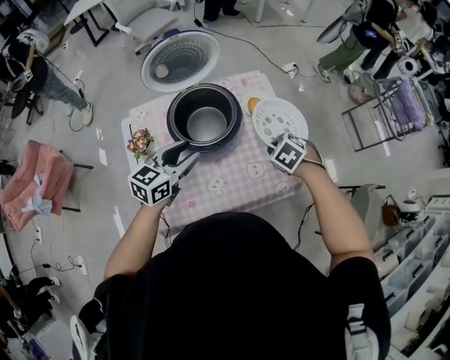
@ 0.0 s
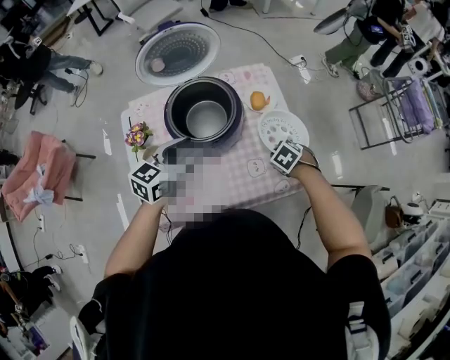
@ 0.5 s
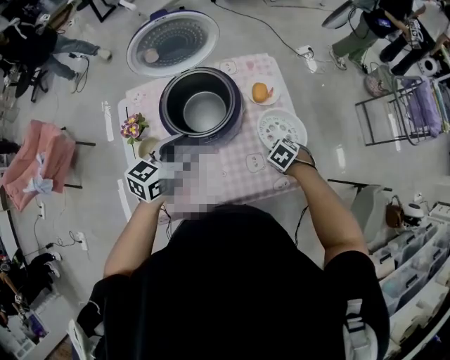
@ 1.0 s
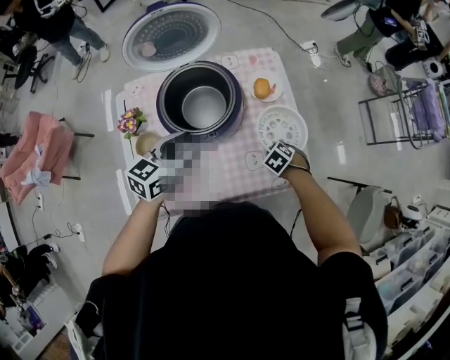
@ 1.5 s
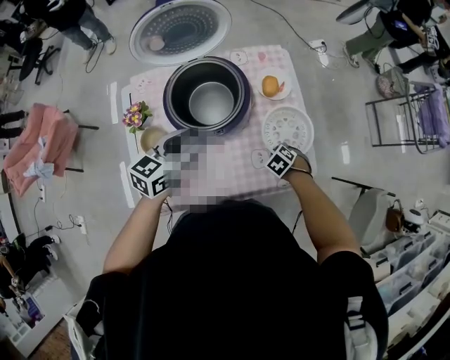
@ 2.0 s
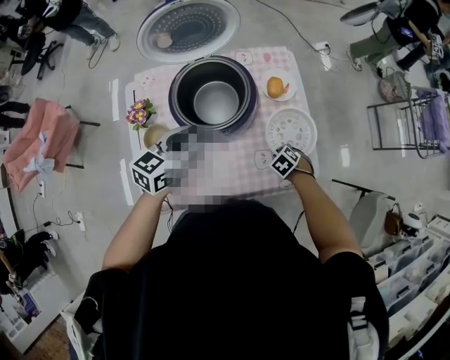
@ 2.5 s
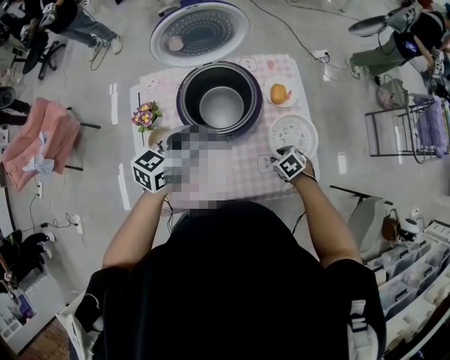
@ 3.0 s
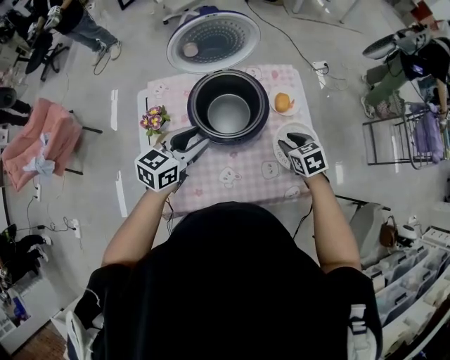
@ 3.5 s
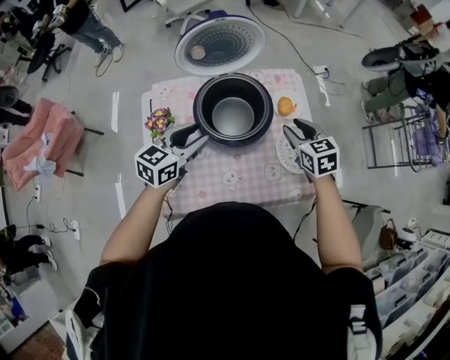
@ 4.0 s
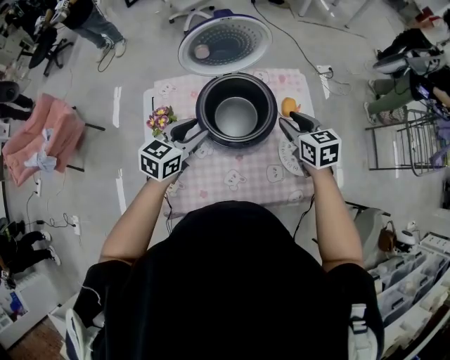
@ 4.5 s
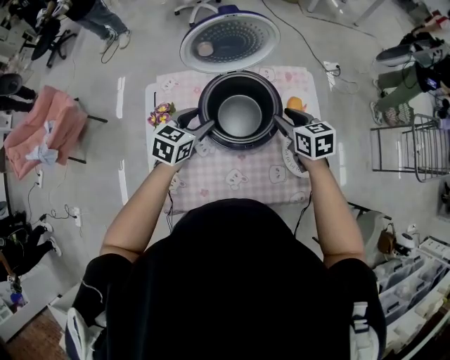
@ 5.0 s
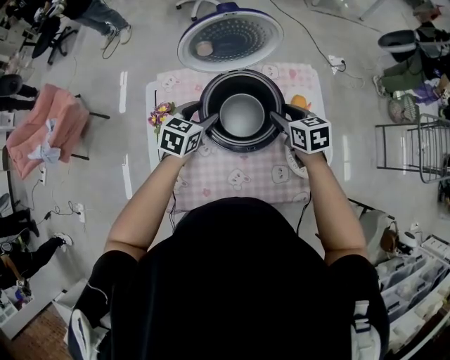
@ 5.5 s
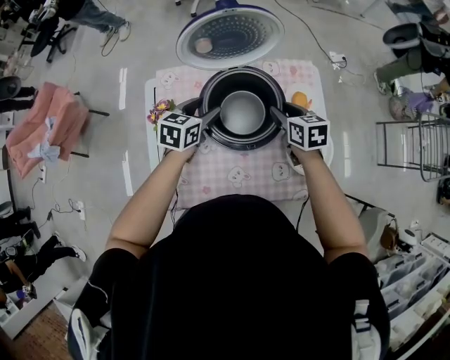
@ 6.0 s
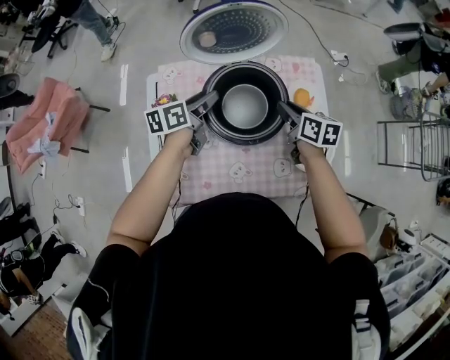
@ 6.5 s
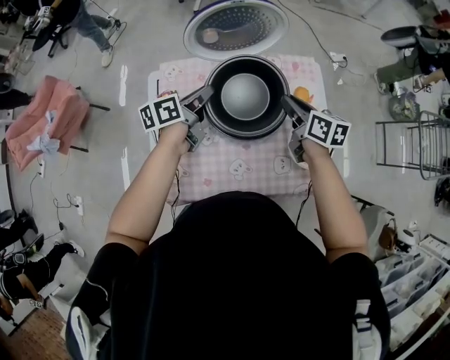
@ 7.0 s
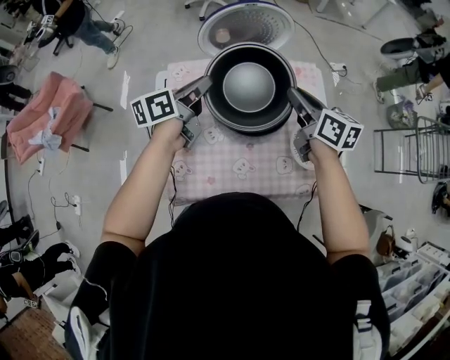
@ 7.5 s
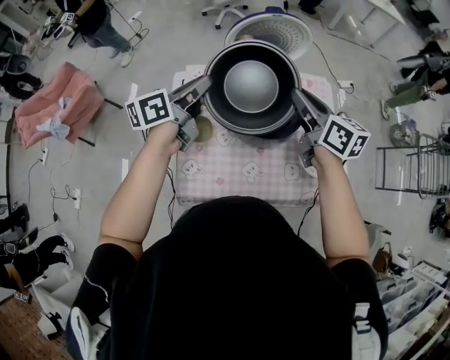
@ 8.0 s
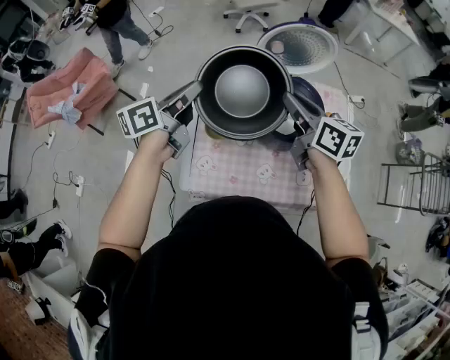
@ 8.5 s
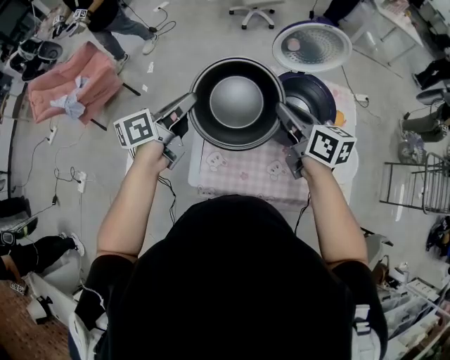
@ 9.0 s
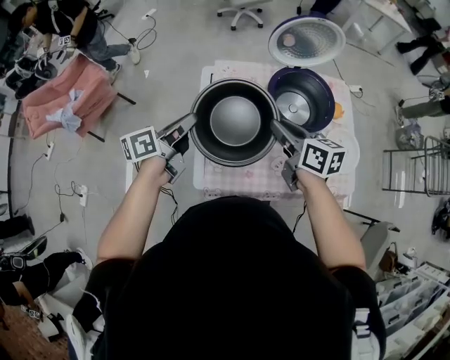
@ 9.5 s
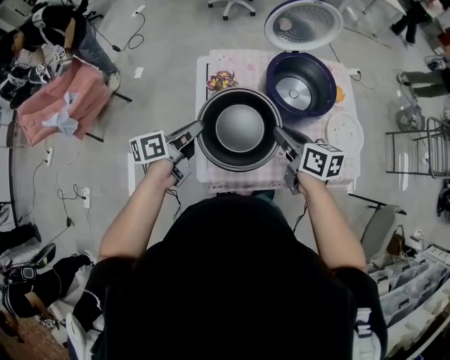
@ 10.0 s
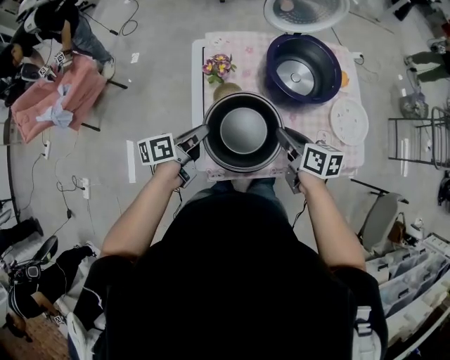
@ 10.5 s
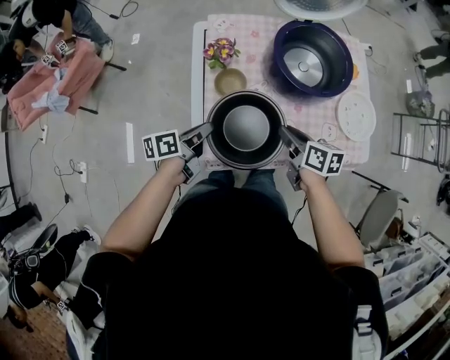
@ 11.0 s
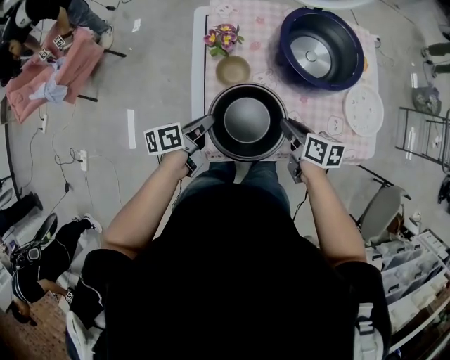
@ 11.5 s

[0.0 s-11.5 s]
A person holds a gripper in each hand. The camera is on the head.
0.0 to 2.0 s: The right gripper shifts about 20 cm downward. The left gripper is displaced downward by about 5 cm.
2.0 to 4.0 s: The right gripper moves upward, approximately 25 cm, tilts its fingers roughly 40 degrees upward, and opens its fingers, while the left gripper shifts by approximately 10 cm.
4.0 to 6.0 s: The right gripper goes some 10 cm forward, to the left and downward; the left gripper moves forward and downward, approximately 15 cm, and changes its angle by approximately 20 degrees.
6.0 to 7.5 s: The two grippers go about 15 cm upward. The right gripper rotates roughly 30 degrees, while the left gripper swivels approximately 40 degrees, and closes up.
7.5 to 9.5 s: The grippers both shift to the left and backward by about 30 cm.
9.5 to 11.5 s: Both grippers move downward, approximately 20 cm. The left gripper rotates roughly 20 degrees; the right gripper rotates roughly 20 degrees.

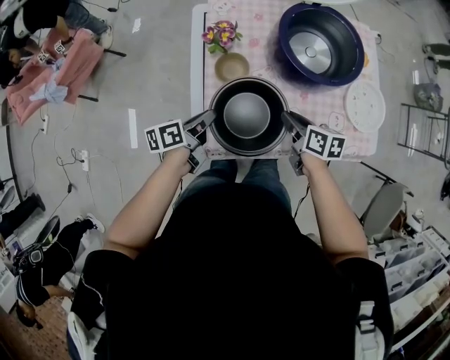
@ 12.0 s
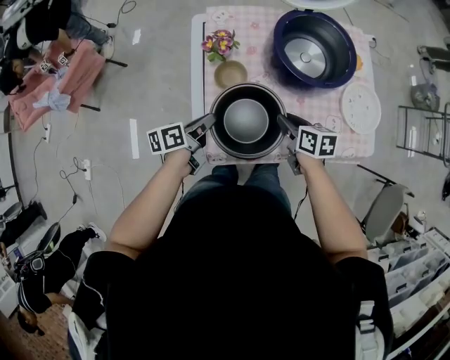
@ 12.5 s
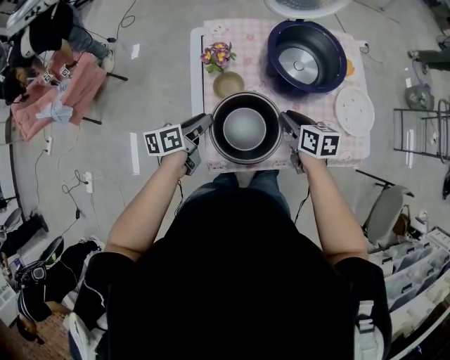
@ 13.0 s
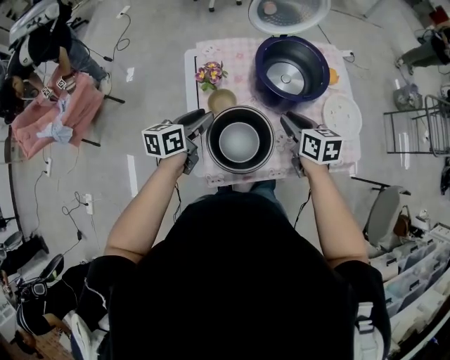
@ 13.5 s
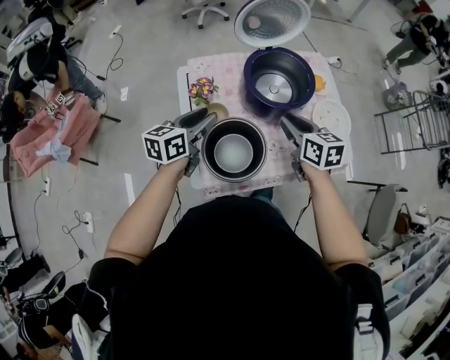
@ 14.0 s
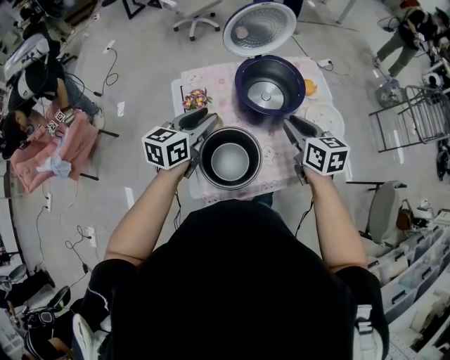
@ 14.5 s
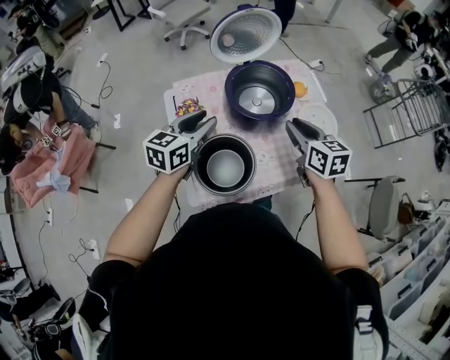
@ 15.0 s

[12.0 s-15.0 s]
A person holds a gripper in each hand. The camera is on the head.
12.0 to 13.5 s: The right gripper heads upward, covering about 10 cm, and swivels some 20 degrees; the left gripper is displaced upward and forward by about 15 cm, swivels roughly 30 degrees, and opens its fingers.
13.5 to 15.0 s: Both grippers travel together upward and to the right, about 15 cm. The left gripper changes its angle by roughly 30 degrees.

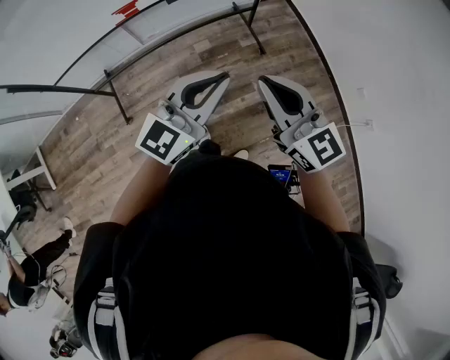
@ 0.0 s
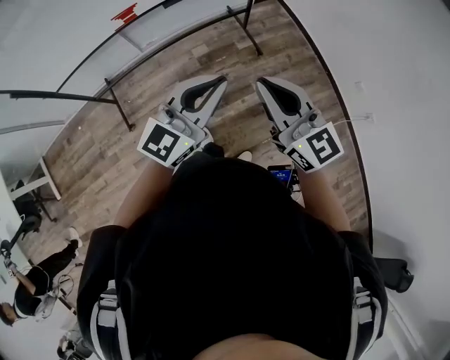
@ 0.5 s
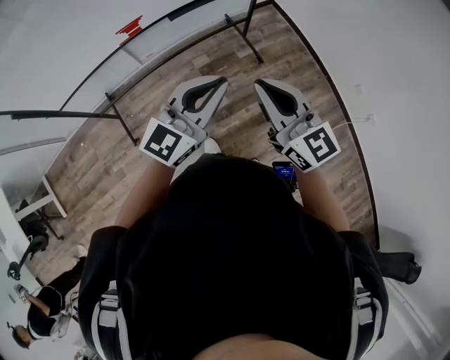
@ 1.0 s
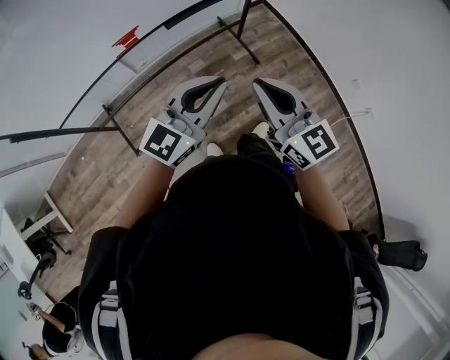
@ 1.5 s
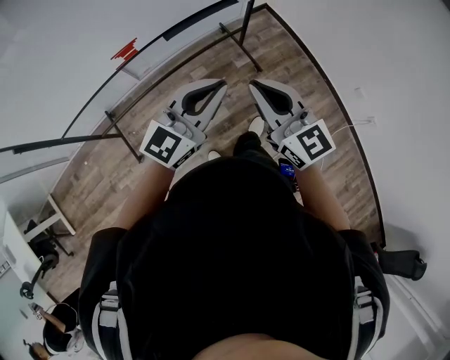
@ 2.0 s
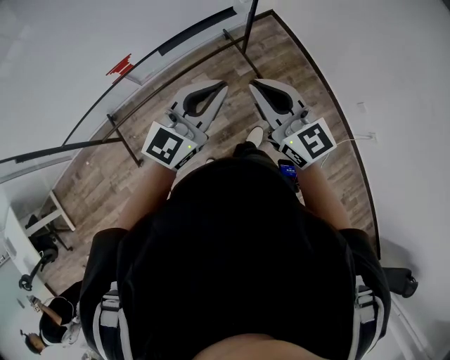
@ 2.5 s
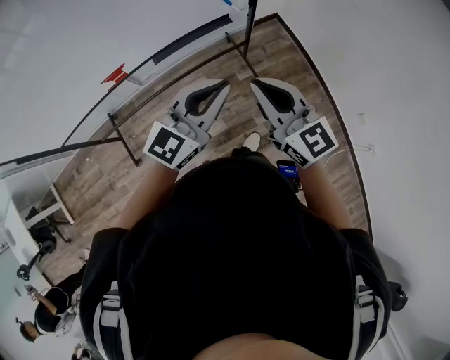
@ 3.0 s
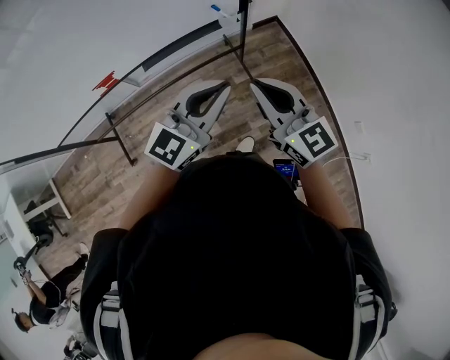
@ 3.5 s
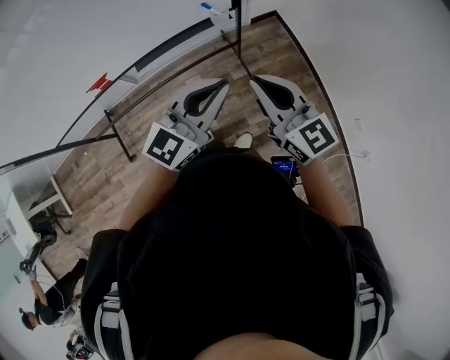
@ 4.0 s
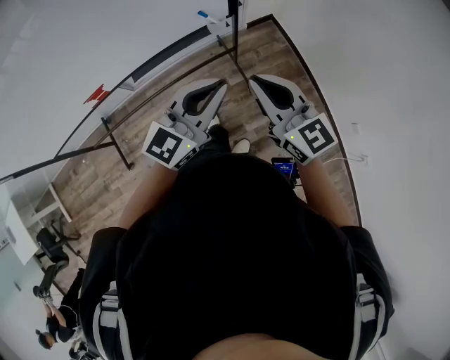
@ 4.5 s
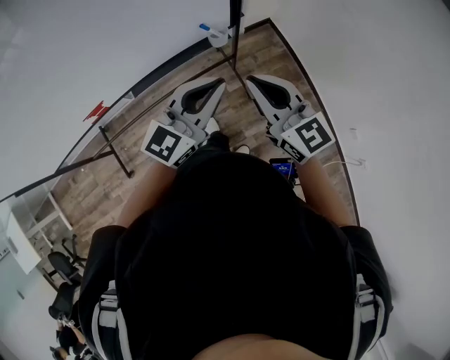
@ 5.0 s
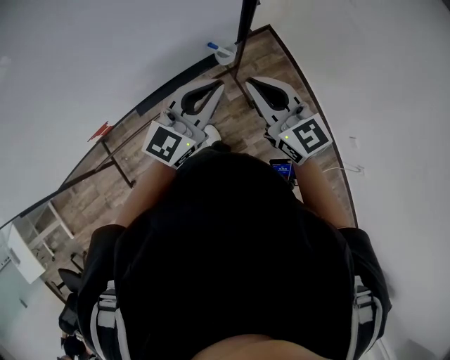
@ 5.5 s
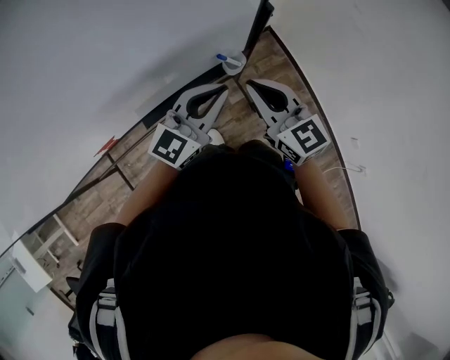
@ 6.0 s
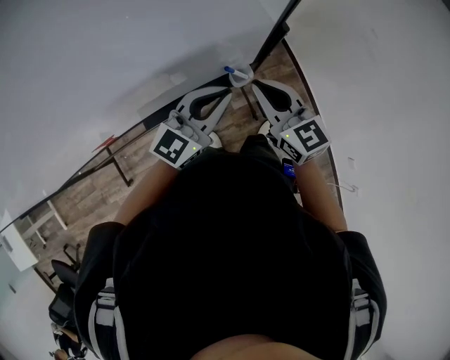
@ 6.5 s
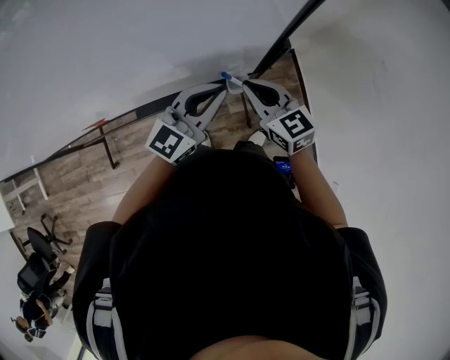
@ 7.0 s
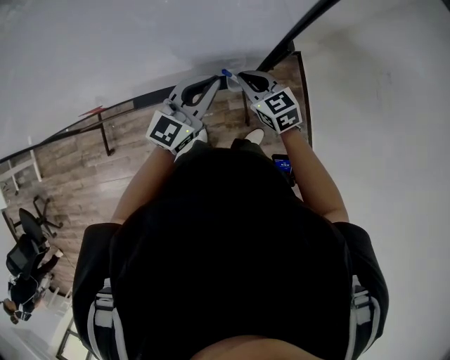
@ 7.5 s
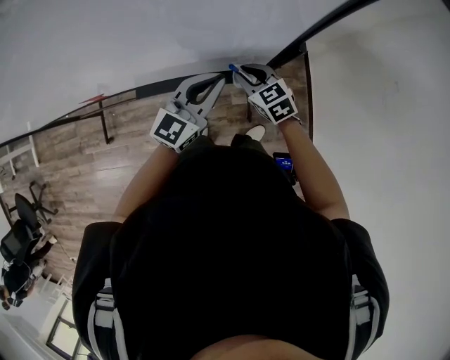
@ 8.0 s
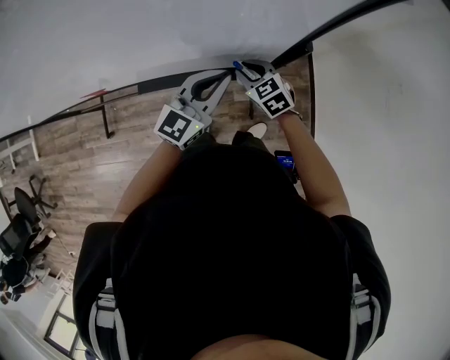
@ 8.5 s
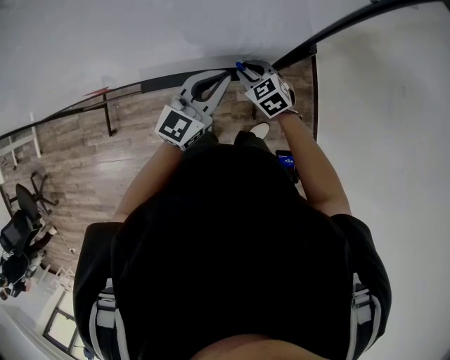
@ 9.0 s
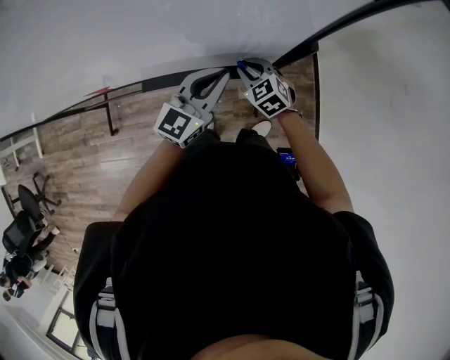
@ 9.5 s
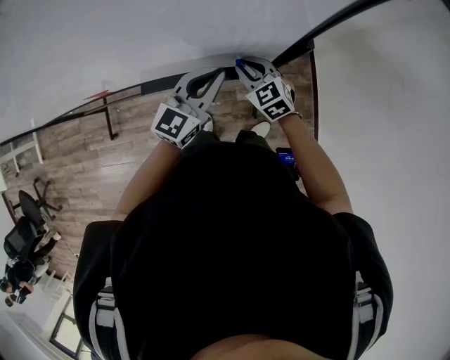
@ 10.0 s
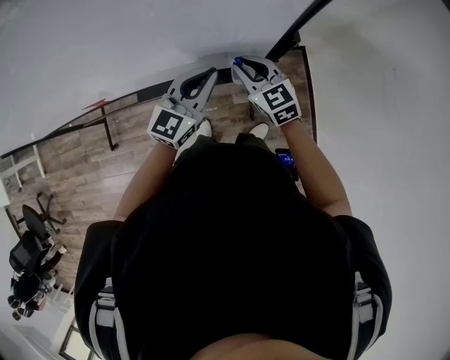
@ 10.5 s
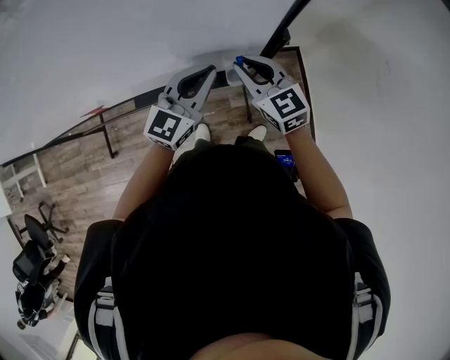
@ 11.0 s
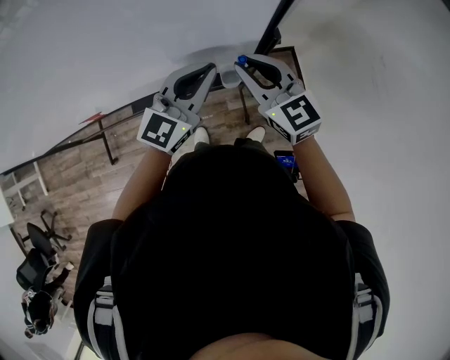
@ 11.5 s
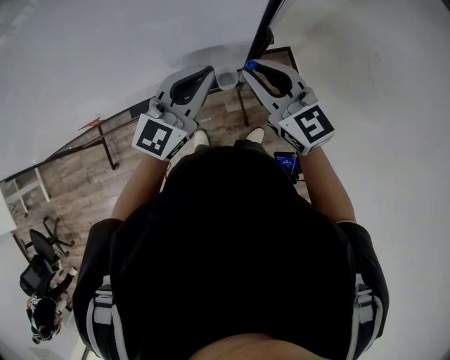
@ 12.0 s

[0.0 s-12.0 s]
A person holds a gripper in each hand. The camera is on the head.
0.0 to 2.0 s: The grippers both shift forward and to the left by about 15 cm.
2.0 to 4.0 s: The two grippers go approximately 30 cm forward and to the right.
4.0 to 6.0 s: The grippers both shift forward and to the left by approximately 25 cm.
6.0 to 8.0 s: The left gripper ends up about 10 cm from where it was, and rotates approximately 30 degrees, while the right gripper moves downward, about 20 cm, and turns by some 40 degrees.
8.0 to 10.0 s: The grippers stay close to where they were, moving slightly.
10.0 to 12.0 s: The left gripper is displaced upward by roughly 10 cm, while the right gripper heads upward, covering approximately 20 cm, and rotates roughly 30 degrees.
